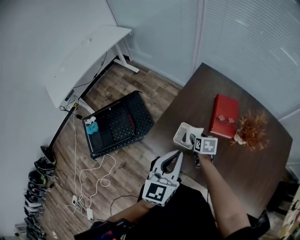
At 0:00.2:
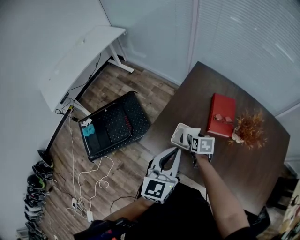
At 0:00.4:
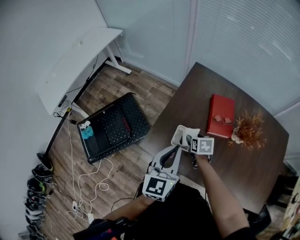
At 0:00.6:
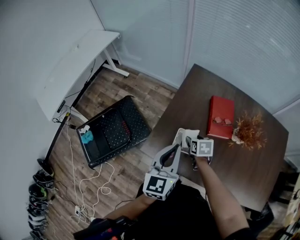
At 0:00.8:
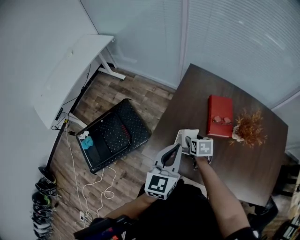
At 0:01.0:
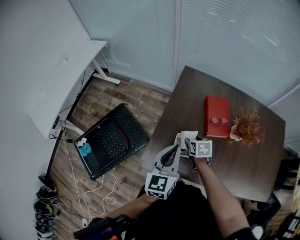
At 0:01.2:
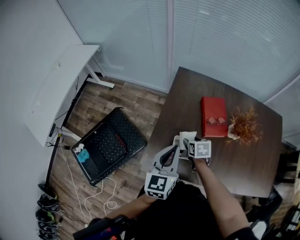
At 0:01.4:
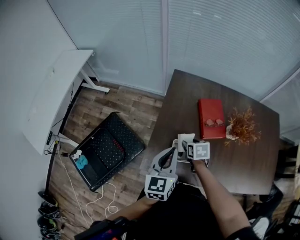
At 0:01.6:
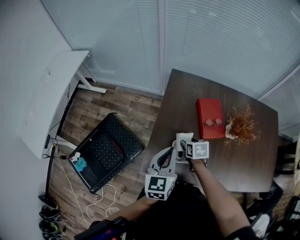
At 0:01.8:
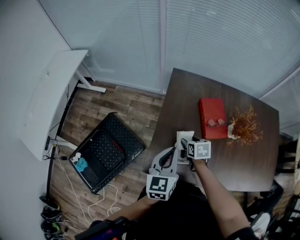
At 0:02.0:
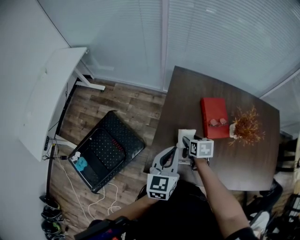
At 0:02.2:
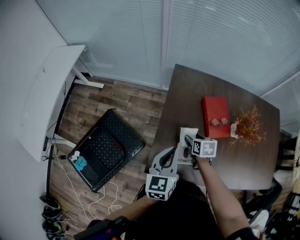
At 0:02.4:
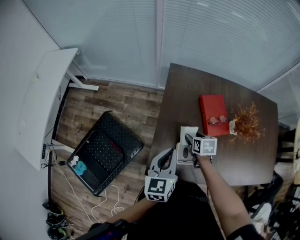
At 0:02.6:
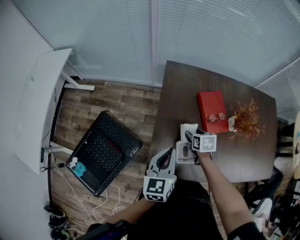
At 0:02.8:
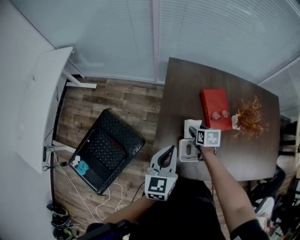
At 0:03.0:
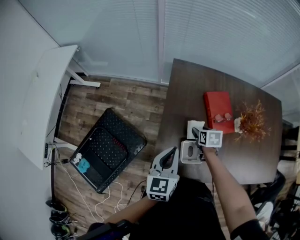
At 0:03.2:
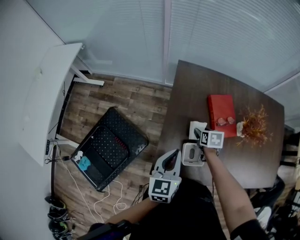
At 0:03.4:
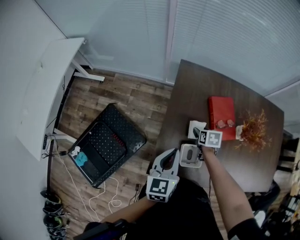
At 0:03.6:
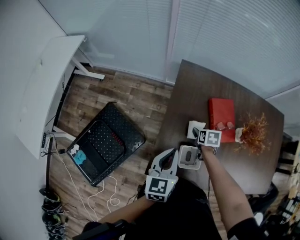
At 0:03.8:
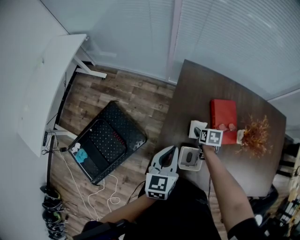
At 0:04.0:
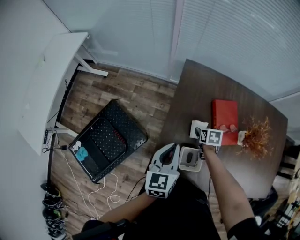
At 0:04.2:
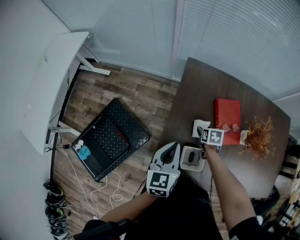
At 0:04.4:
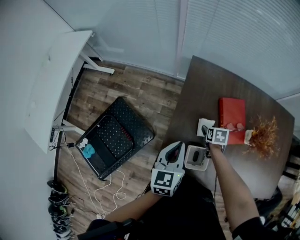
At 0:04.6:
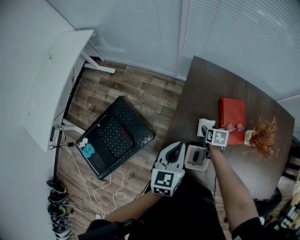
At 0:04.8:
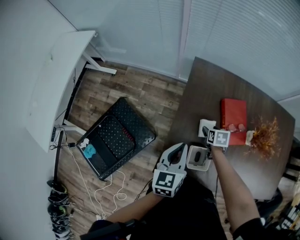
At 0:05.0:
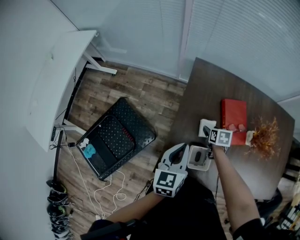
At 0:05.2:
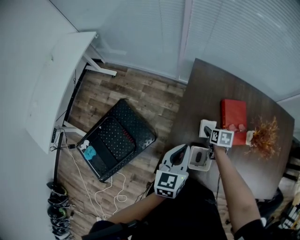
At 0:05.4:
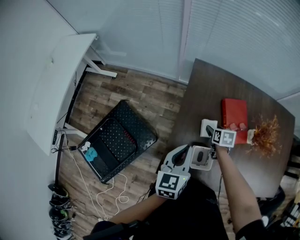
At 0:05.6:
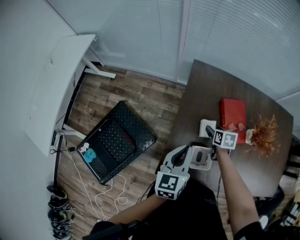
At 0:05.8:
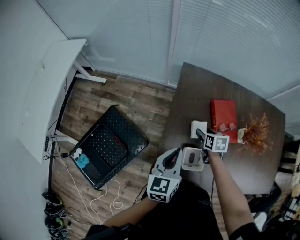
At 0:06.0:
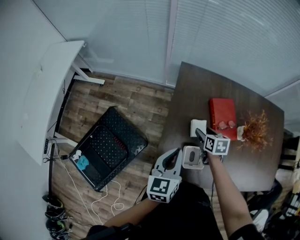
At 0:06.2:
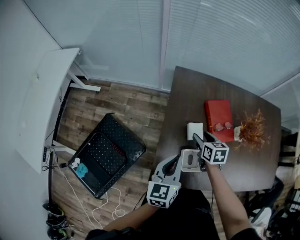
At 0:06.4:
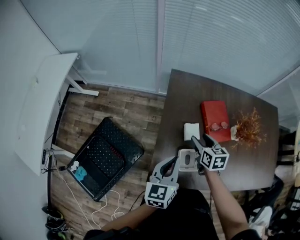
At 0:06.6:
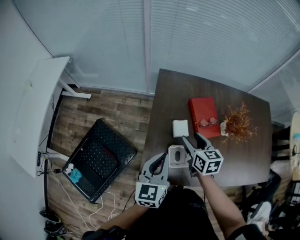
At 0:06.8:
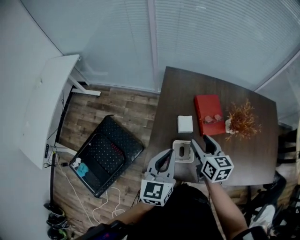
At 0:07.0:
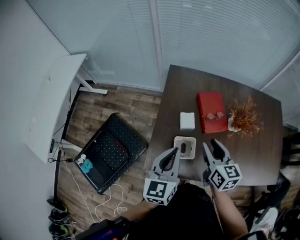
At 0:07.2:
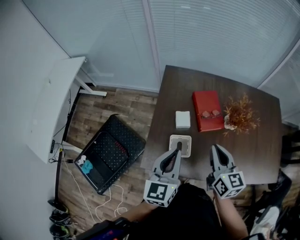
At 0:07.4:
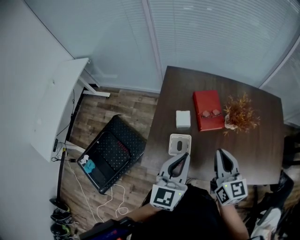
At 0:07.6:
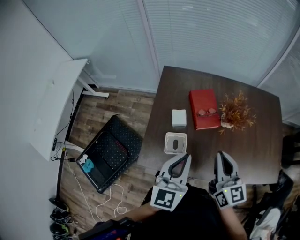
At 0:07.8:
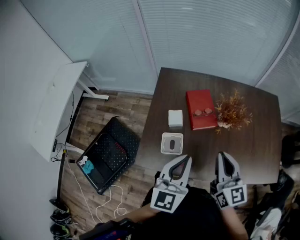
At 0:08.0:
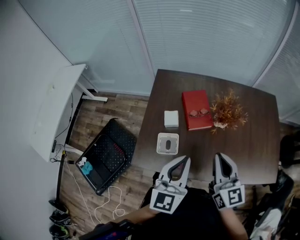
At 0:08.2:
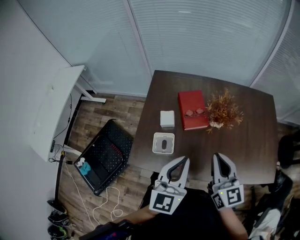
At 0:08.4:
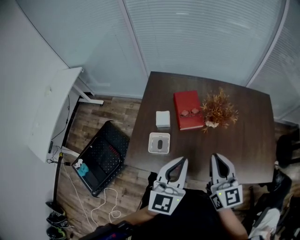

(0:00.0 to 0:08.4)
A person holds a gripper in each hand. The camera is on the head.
0:00.0 - 0:01.4: The left gripper goes approximately 10 cm forward.
0:01.4 - 0:02.8: The left gripper shifts by roughly 10 cm; the right gripper goes roughly 5 cm forward.
0:02.8 - 0:04.2: The right gripper shifts approximately 10 cm downward and forward. Meanwhile the left gripper shifts by some 5 cm.
0:04.2 - 0:05.6: The grippers move only a little.
0:05.6 - 0:07.0: The left gripper is displaced backward, upward and to the right by about 10 cm; the right gripper is displaced upward and backward by about 25 cm, and angles its fingers upward, by some 30 degrees.
0:07.0 - 0:08.4: The right gripper shifts about 20 cm to the right, backward and upward, turns by approximately 20 degrees, and closes up. The left gripper goes approximately 20 cm to the right and backward.

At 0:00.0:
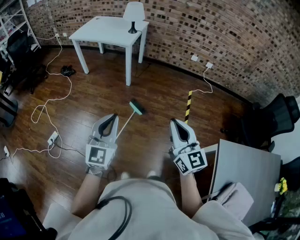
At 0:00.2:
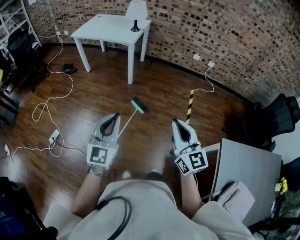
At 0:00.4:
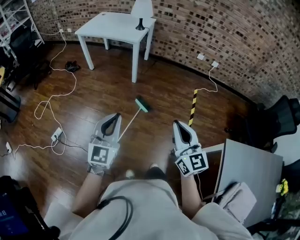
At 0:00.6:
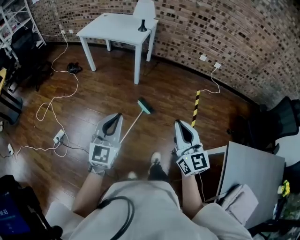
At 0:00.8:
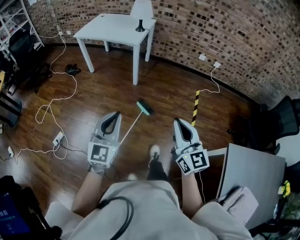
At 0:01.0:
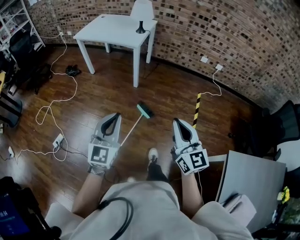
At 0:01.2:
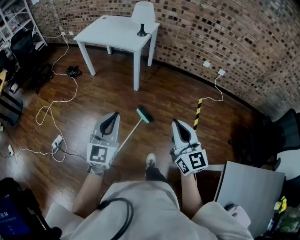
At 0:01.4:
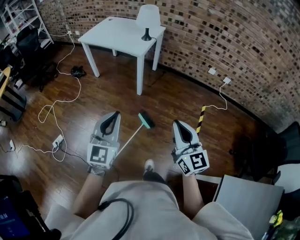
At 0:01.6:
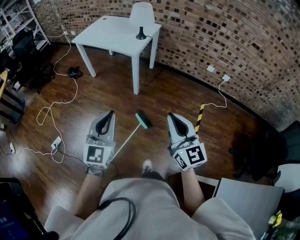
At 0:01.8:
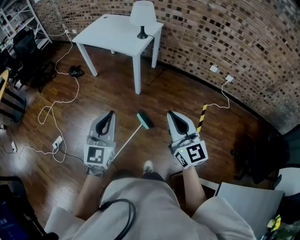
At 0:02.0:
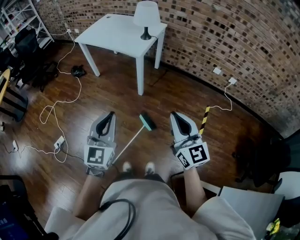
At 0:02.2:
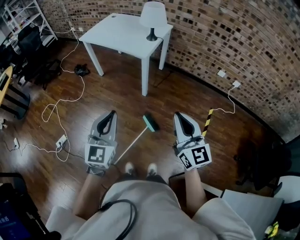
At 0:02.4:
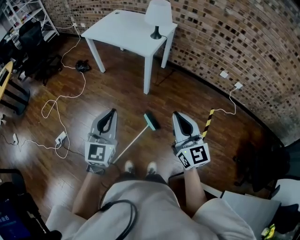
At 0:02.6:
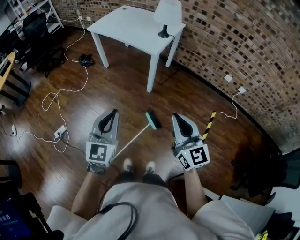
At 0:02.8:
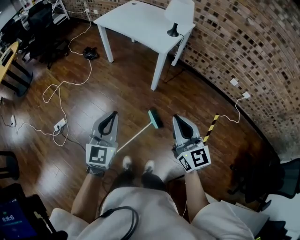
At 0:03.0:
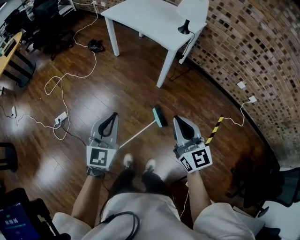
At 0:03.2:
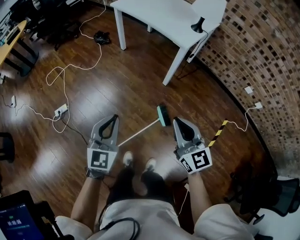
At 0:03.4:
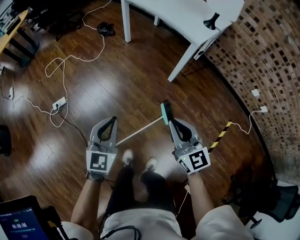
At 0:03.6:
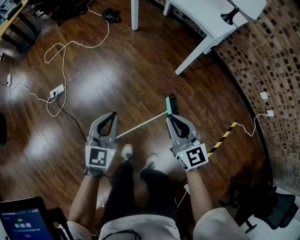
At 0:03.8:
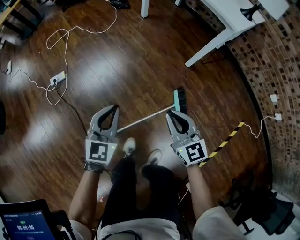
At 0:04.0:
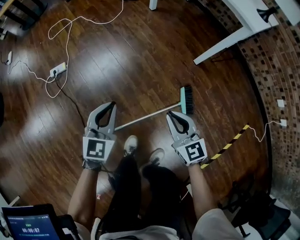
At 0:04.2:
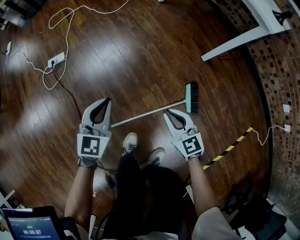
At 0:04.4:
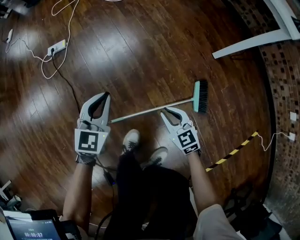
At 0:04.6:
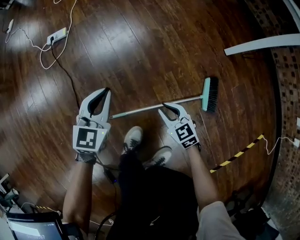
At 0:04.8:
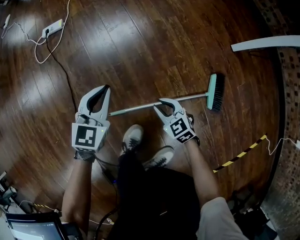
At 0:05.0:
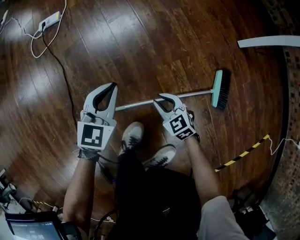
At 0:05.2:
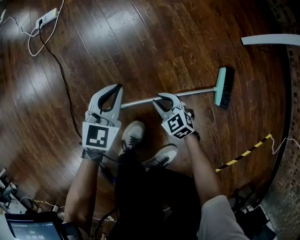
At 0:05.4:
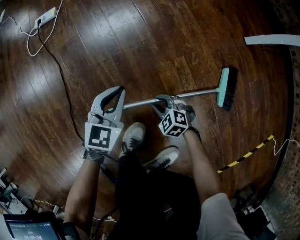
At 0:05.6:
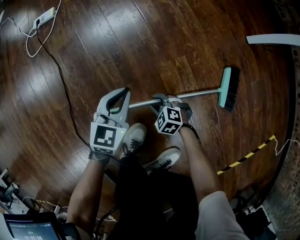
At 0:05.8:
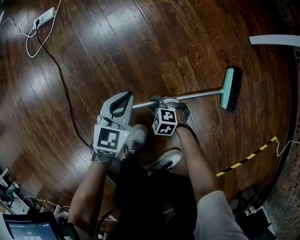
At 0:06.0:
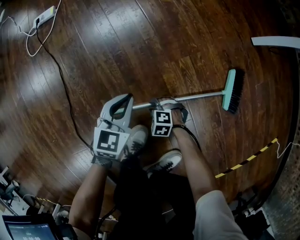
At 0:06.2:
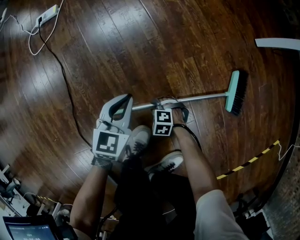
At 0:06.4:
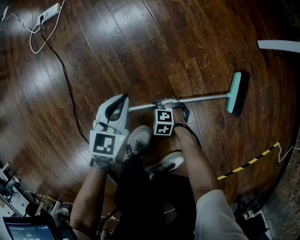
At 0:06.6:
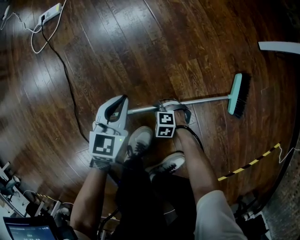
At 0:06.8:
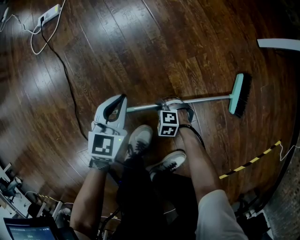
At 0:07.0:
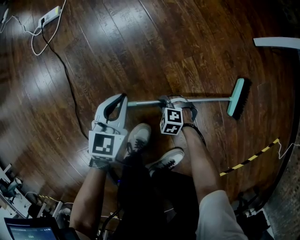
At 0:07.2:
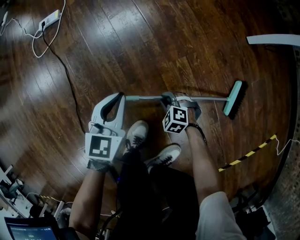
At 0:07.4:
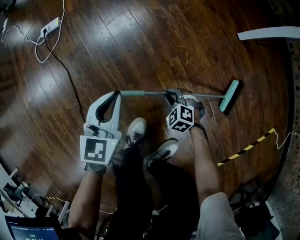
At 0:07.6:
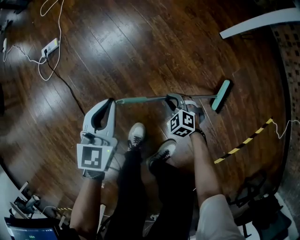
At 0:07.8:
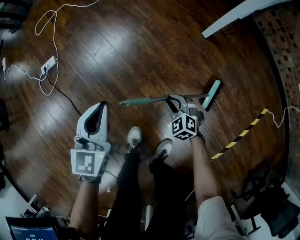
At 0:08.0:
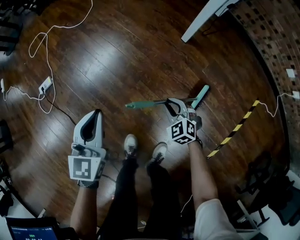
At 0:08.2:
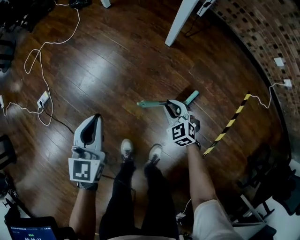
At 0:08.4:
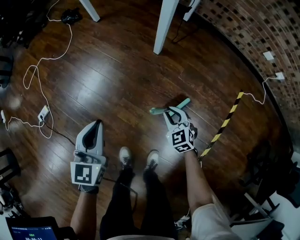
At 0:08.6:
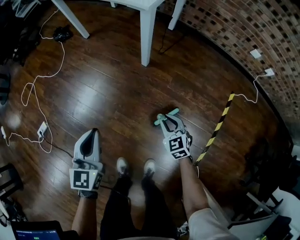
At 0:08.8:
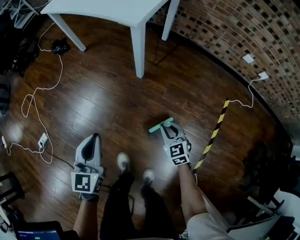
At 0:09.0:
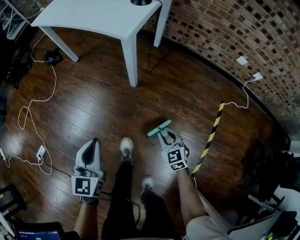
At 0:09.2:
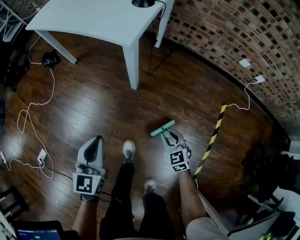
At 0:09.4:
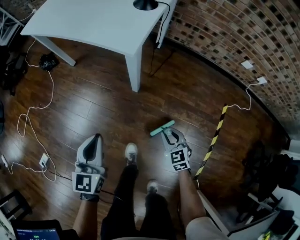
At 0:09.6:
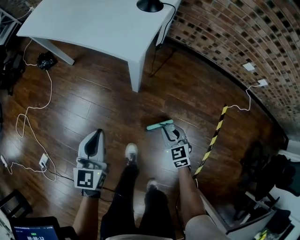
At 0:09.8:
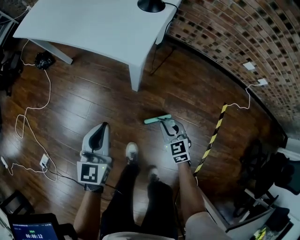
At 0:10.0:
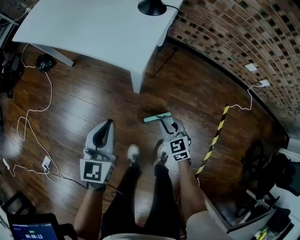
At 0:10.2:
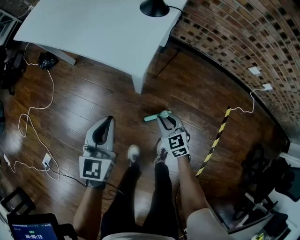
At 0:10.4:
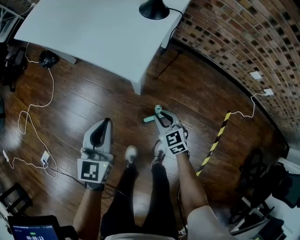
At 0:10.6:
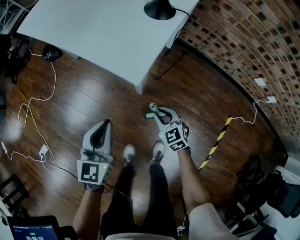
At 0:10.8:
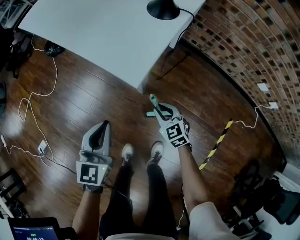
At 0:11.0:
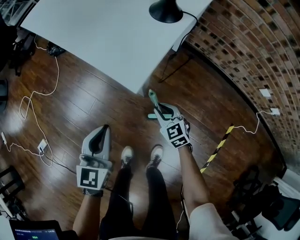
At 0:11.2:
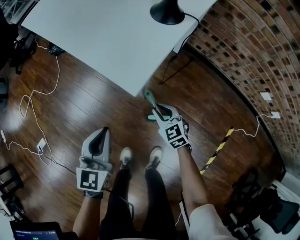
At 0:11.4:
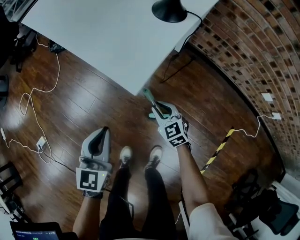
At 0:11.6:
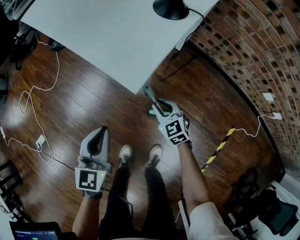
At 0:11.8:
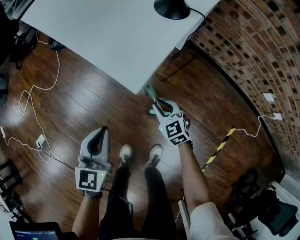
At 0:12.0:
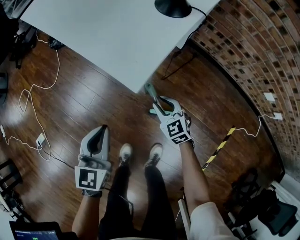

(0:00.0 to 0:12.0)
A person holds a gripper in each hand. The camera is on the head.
0:00.0 - 0:01.6: The grippers both shift forward by roughly 25 cm.
0:01.6 - 0:03.0: The right gripper goes some 20 cm forward, to the left and downward. The left gripper shifts about 15 cm to the left, downward and forward.
0:03.0 - 0:04.4: Both grippers move downward, approximately 60 cm. The left gripper rotates approximately 30 degrees; the right gripper tips its fingers downward by some 30 degrees.
0:04.4 - 0:06.0: Both grippers travel together downward, about 35 cm. The right gripper angles its fingers downward, by some 30 degrees.
0:06.0 - 0:07.6: The two grippers go approximately 25 cm upward. The right gripper changes its angle by some 30 degrees.
0:07.6 - 0:09.0: The right gripper moves some 50 cm, and changes its angle by some 60 degrees. Meanwhile the left gripper changes place by about 40 cm, and changes its angle by approximately 30 degrees.
0:09.0 - 0:10.4: The two grippers go roughly 25 cm forward.
0:10.4 - 0:12.0: The right gripper goes about 10 cm forward.

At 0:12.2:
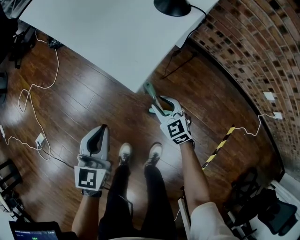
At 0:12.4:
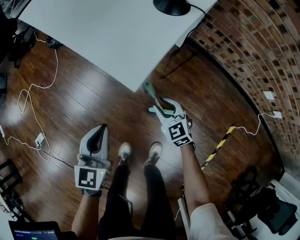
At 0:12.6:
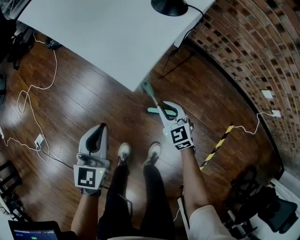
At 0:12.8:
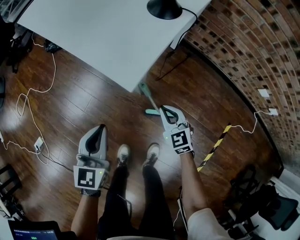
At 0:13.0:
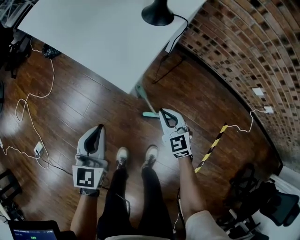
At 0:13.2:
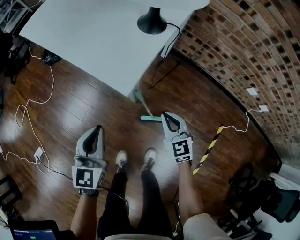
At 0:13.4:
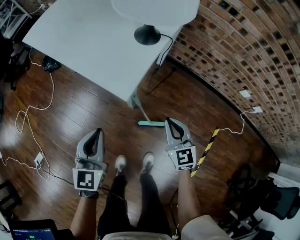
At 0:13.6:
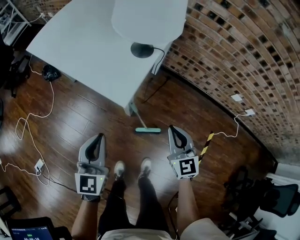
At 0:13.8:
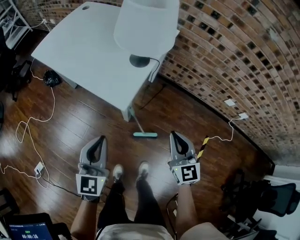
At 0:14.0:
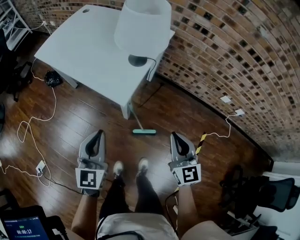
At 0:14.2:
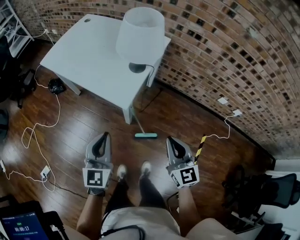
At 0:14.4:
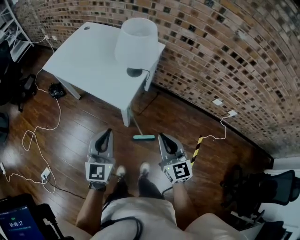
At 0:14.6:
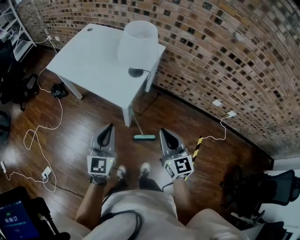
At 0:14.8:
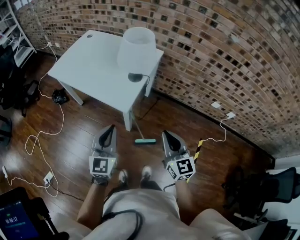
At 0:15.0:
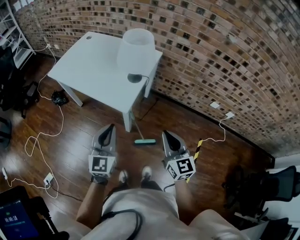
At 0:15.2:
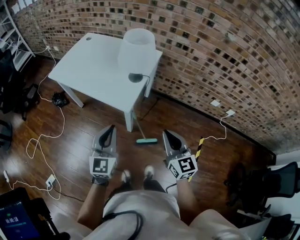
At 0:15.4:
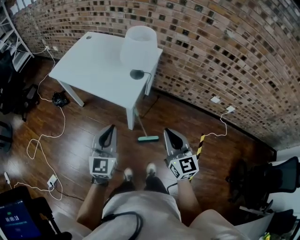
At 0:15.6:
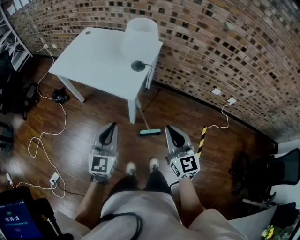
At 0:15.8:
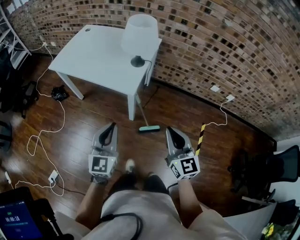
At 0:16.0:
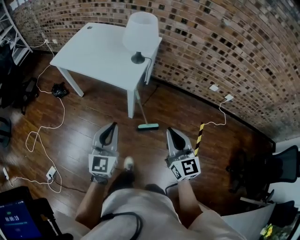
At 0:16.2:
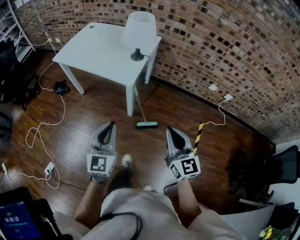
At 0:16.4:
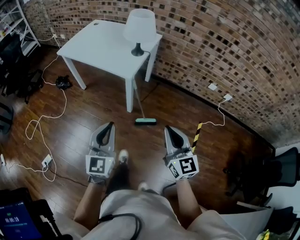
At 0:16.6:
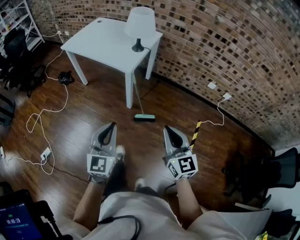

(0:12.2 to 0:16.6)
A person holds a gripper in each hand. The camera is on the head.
0:12.2 - 0:13.6: The left gripper shifts roughly 15 cm upward, while the right gripper goes roughly 25 cm upward, changes its angle by about 30 degrees, and closes its fingers.
0:13.6 - 0:15.2: The right gripper shifts roughly 25 cm upward and backward, while the left gripper heads upward, covering roughly 20 cm.
0:15.2 - 0:16.6: The grippers both shift backward by about 25 cm.
